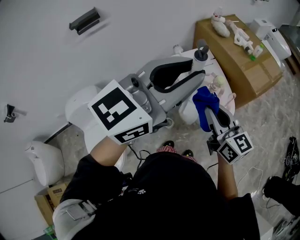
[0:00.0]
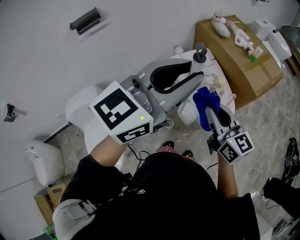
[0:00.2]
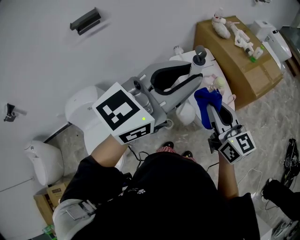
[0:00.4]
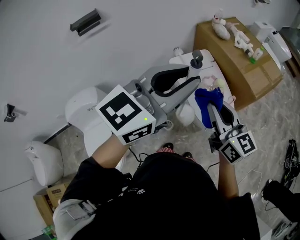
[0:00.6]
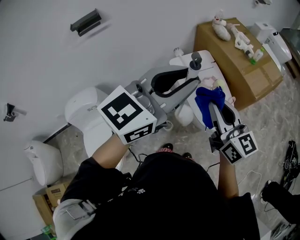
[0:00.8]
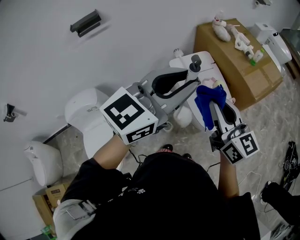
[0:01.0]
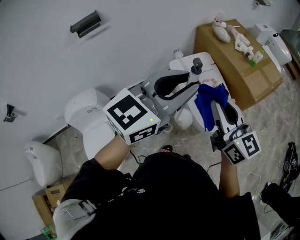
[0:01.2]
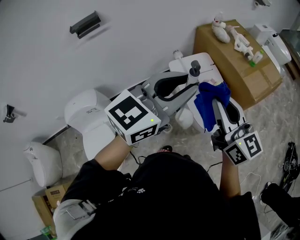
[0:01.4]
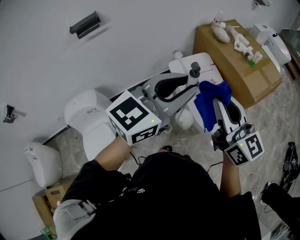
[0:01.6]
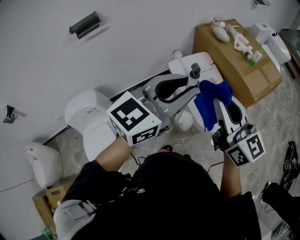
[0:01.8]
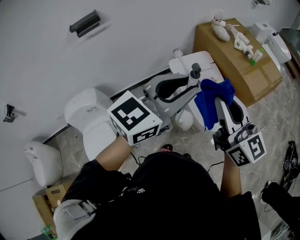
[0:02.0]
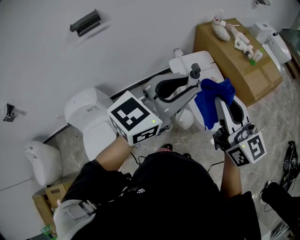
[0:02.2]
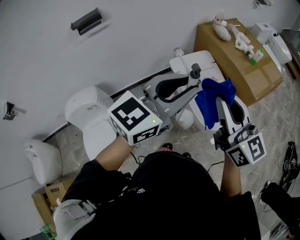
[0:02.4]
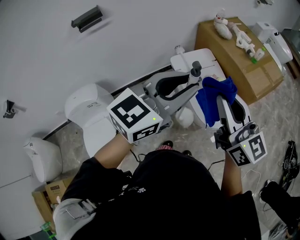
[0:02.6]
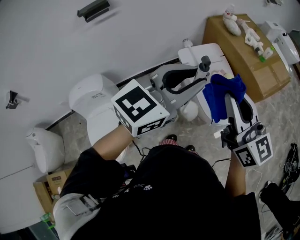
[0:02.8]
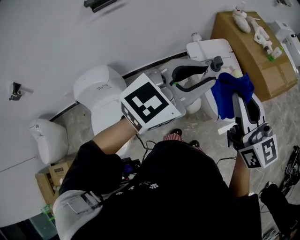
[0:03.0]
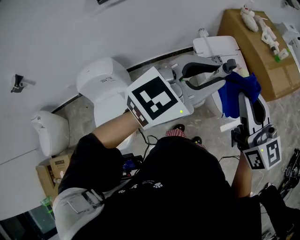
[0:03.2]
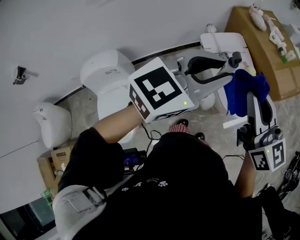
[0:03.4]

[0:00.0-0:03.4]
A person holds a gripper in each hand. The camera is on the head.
0:00.0 to 0:01.6: The left gripper travels downward by approximately 5 cm, while the right gripper is displaced upward by about 10 cm.
0:01.6 to 0:03.4: The grippers make only small movements.

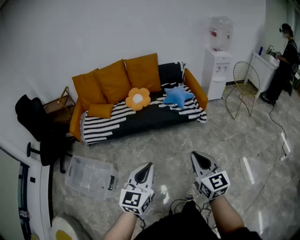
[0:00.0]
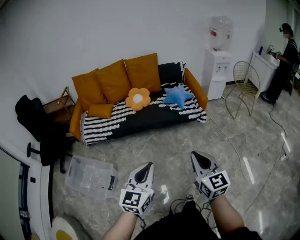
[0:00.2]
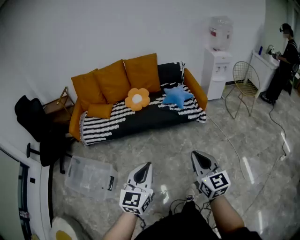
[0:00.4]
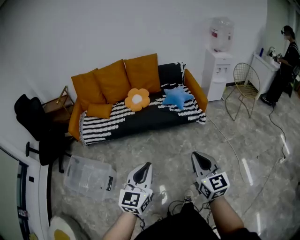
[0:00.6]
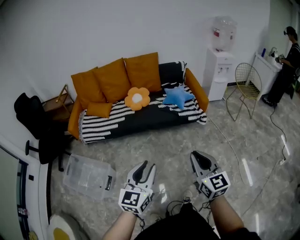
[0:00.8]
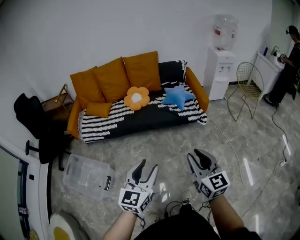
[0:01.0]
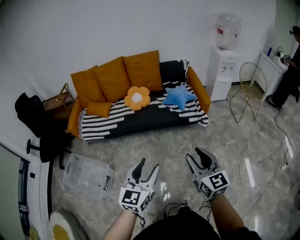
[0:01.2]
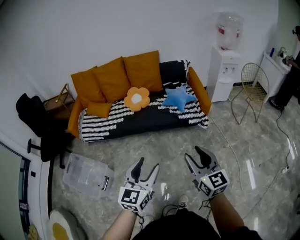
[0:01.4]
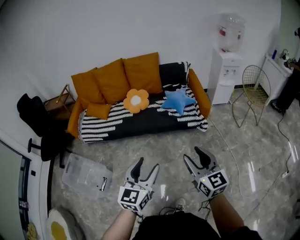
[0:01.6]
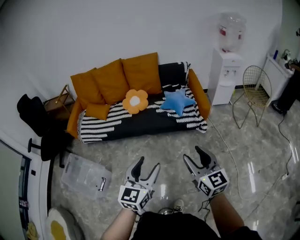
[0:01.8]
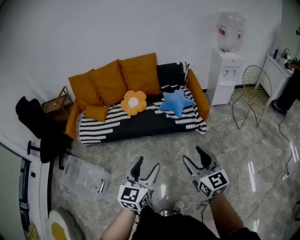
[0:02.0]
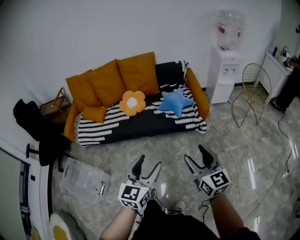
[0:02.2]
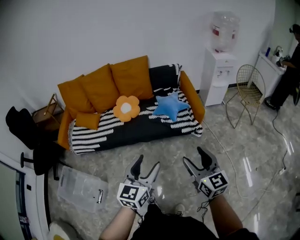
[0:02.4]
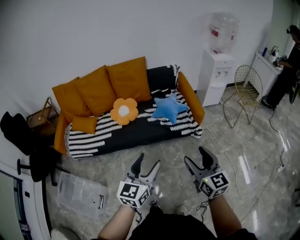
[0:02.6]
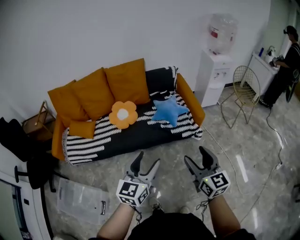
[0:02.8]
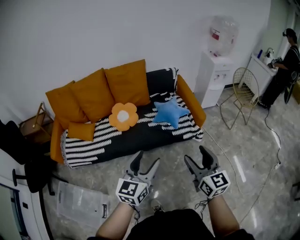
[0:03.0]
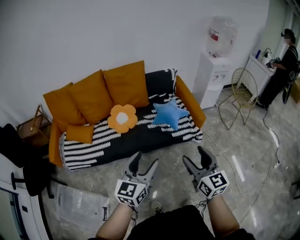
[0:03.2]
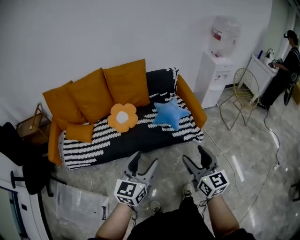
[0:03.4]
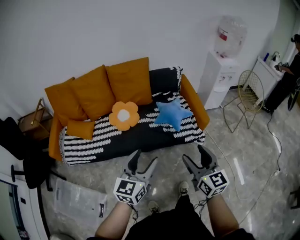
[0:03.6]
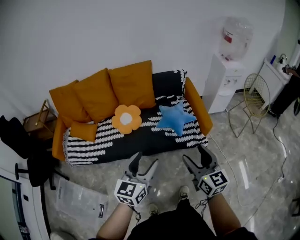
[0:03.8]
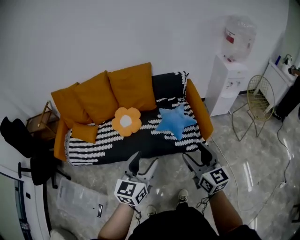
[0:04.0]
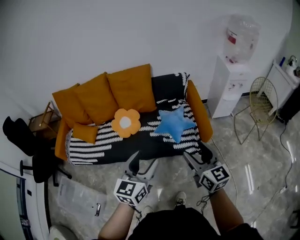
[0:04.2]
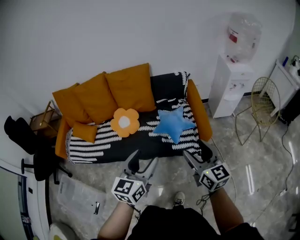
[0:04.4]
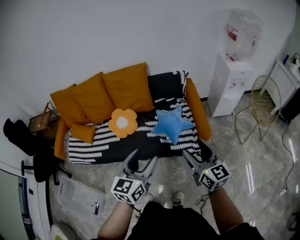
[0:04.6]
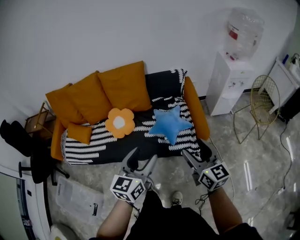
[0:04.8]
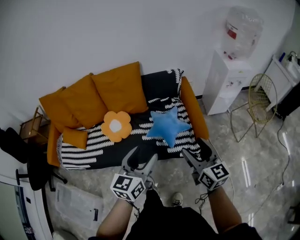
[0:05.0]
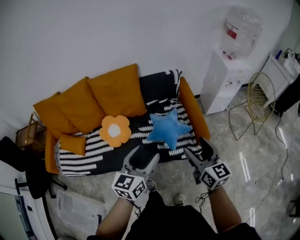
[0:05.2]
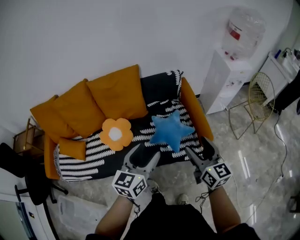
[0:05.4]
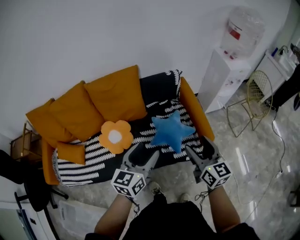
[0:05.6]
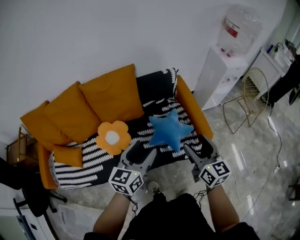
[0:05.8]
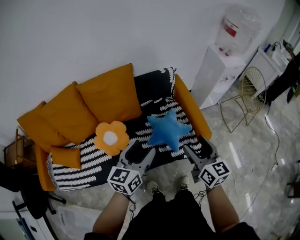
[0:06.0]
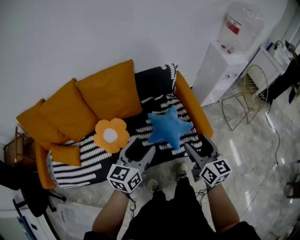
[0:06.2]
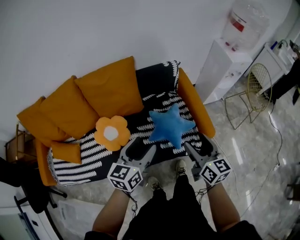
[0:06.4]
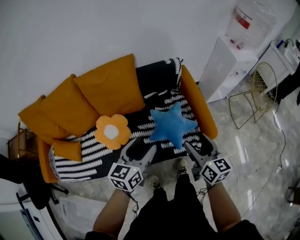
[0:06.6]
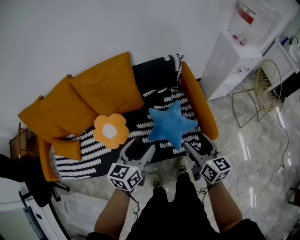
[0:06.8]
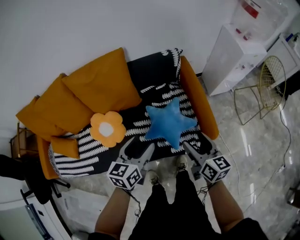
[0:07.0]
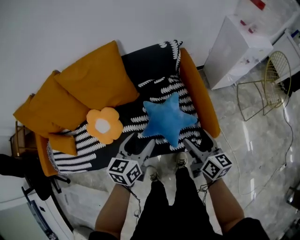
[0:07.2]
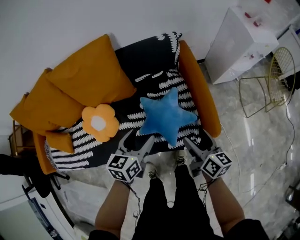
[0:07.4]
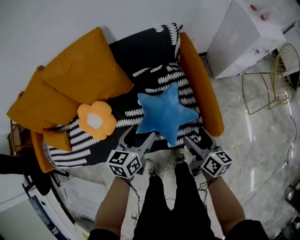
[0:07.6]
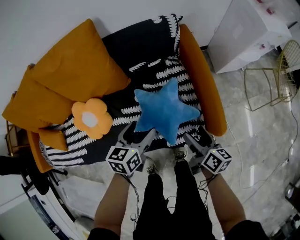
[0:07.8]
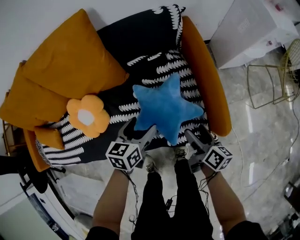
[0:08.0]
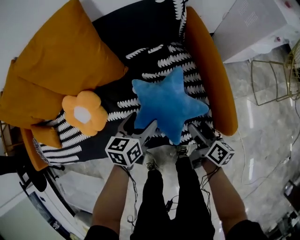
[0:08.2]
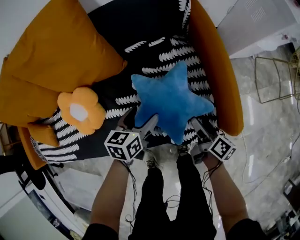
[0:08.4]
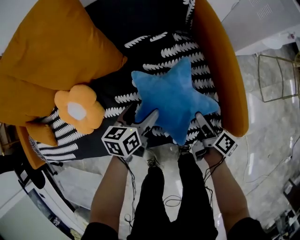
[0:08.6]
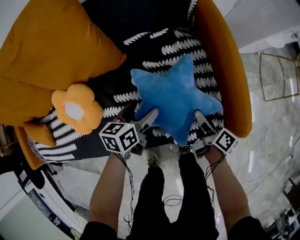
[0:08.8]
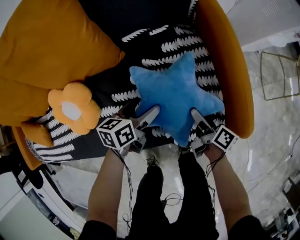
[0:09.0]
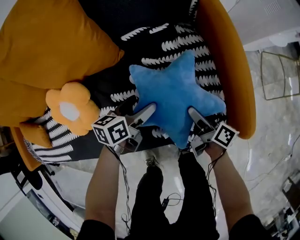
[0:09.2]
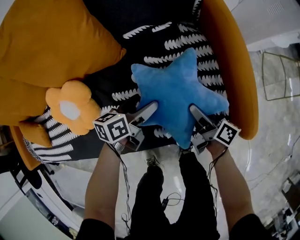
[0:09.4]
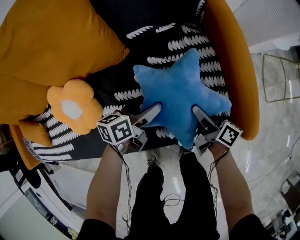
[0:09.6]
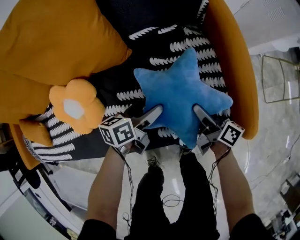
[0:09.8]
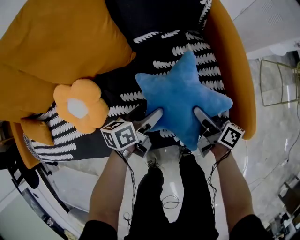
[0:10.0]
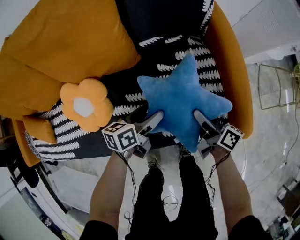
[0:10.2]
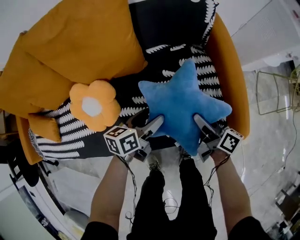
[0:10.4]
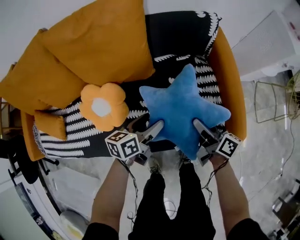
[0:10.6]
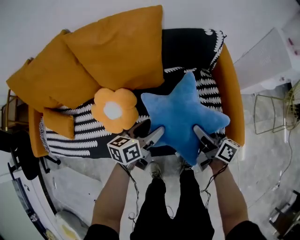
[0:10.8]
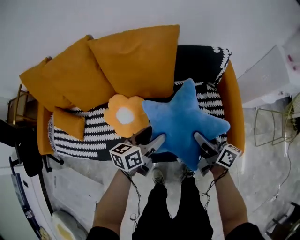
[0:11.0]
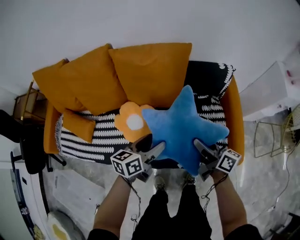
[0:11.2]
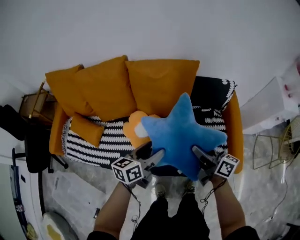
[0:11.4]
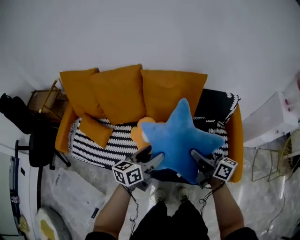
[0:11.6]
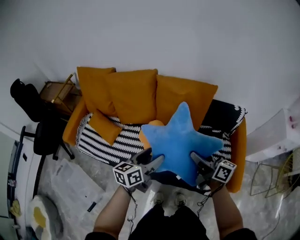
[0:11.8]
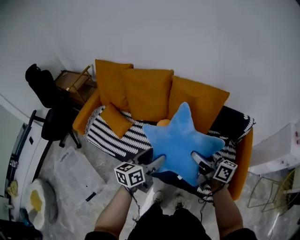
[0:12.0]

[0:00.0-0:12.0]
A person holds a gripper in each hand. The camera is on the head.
0:00.0 to 0:01.6: Both grippers move forward and to the right, some 15 cm. The left gripper opens its fingers. Meanwhile the right gripper opens.
0:01.6 to 0:03.0: Both grippers travel together forward, about 20 cm.
0:03.0 to 0:04.4: Both grippers move forward and to the right, some 20 cm.
0:04.4 to 0:06.0: The grippers both shift forward and to the left by roughly 20 cm.
0:06.0 to 0:07.6: The right gripper shifts some 30 cm downward and forward, and swivels about 30 degrees, while the left gripper shifts roughly 30 cm downward, forward and to the right, and rotates roughly 20 degrees.
0:07.6 to 0:09.0: Both grippers move downward, roughly 25 cm. The right gripper rotates about 30 degrees.
0:09.0 to 0:10.4: The right gripper travels upward and to the left by roughly 15 cm. Meanwhile the left gripper moves upward, some 10 cm.
0:10.4 to 0:12.0: Both grippers travel together upward, roughly 35 cm. The right gripper changes its angle by some 40 degrees; the left gripper swivels approximately 40 degrees.

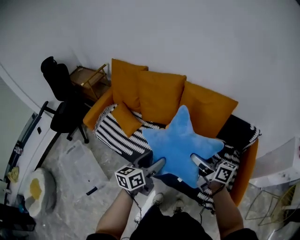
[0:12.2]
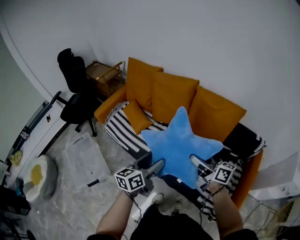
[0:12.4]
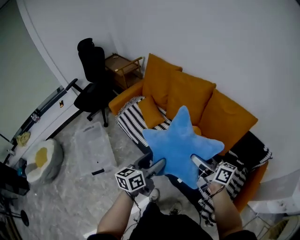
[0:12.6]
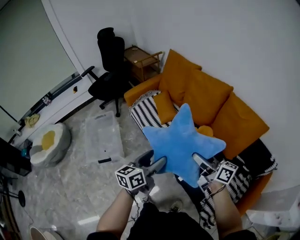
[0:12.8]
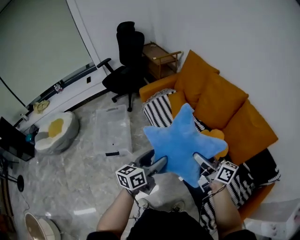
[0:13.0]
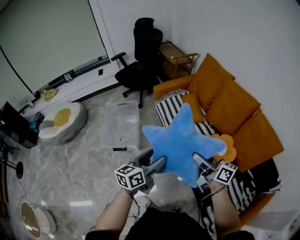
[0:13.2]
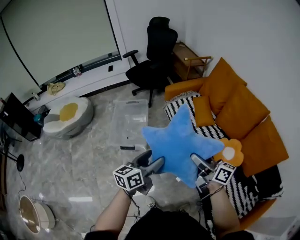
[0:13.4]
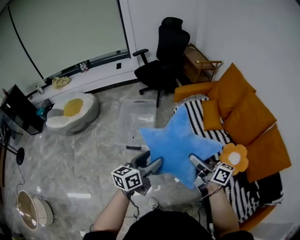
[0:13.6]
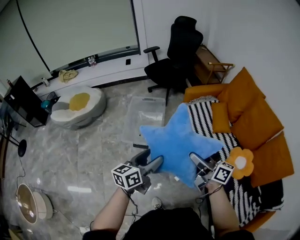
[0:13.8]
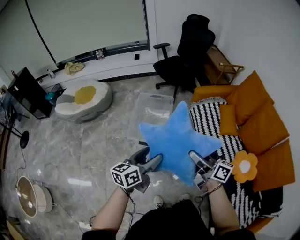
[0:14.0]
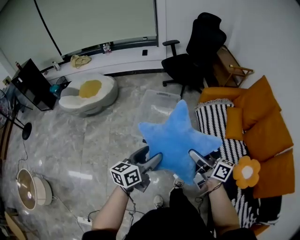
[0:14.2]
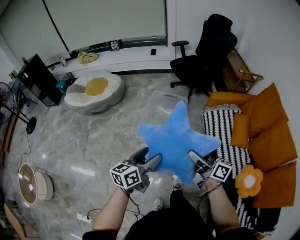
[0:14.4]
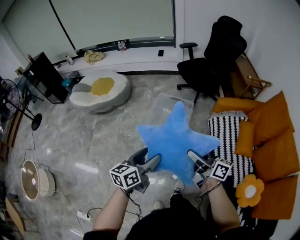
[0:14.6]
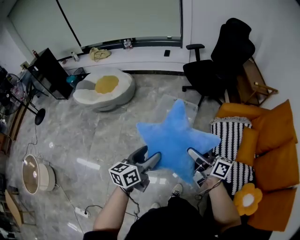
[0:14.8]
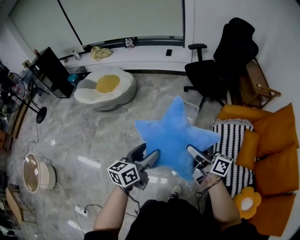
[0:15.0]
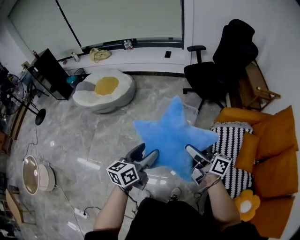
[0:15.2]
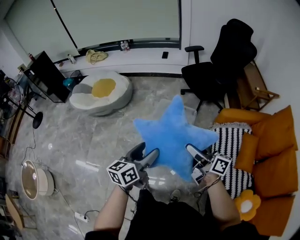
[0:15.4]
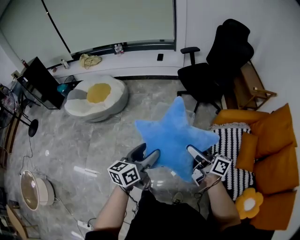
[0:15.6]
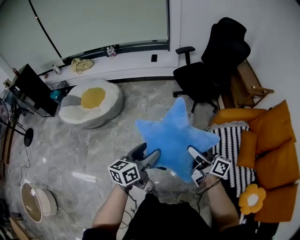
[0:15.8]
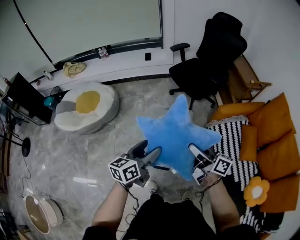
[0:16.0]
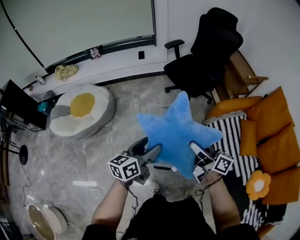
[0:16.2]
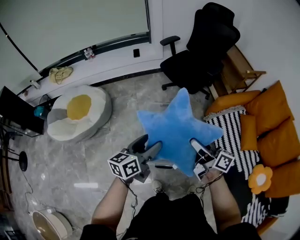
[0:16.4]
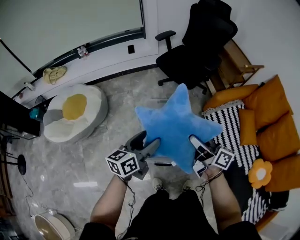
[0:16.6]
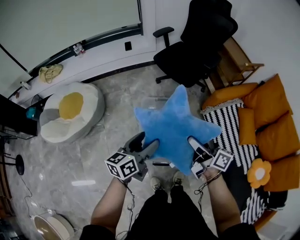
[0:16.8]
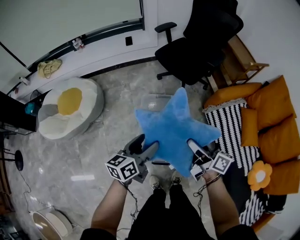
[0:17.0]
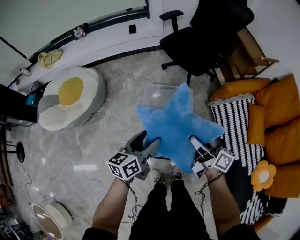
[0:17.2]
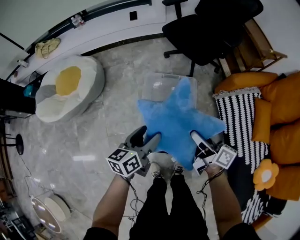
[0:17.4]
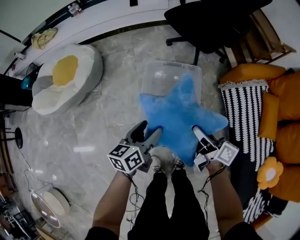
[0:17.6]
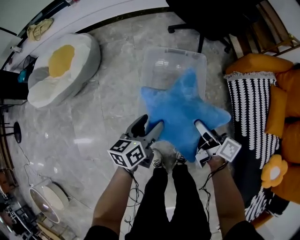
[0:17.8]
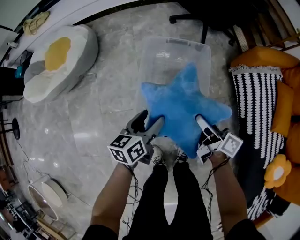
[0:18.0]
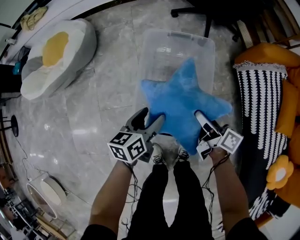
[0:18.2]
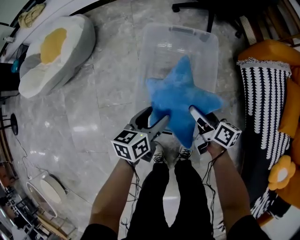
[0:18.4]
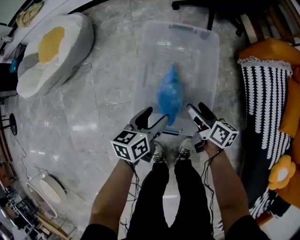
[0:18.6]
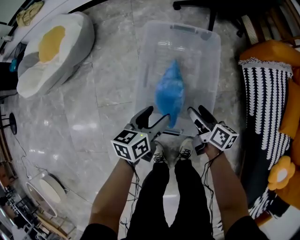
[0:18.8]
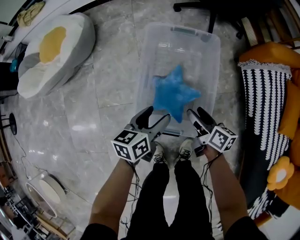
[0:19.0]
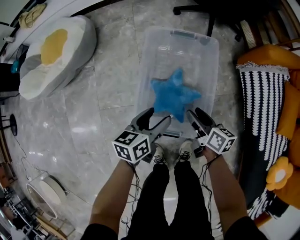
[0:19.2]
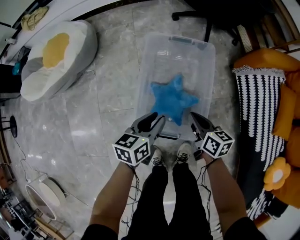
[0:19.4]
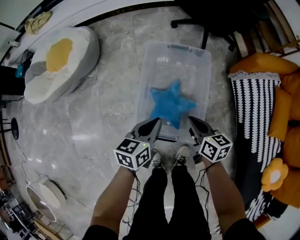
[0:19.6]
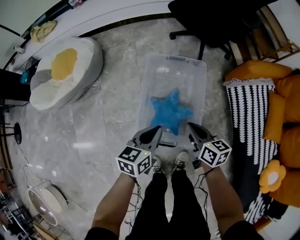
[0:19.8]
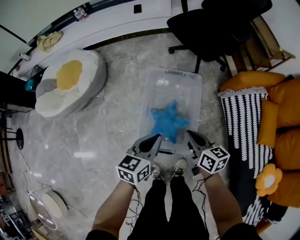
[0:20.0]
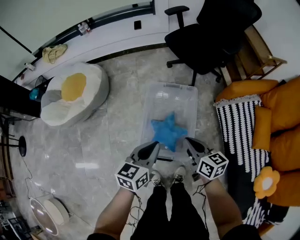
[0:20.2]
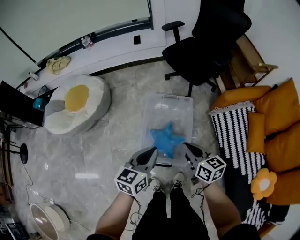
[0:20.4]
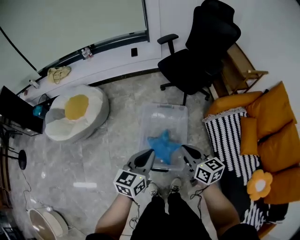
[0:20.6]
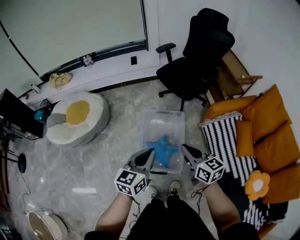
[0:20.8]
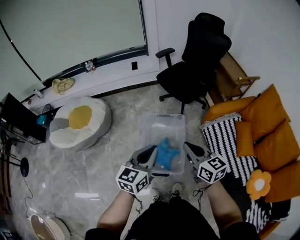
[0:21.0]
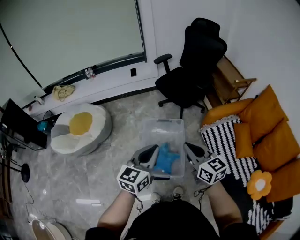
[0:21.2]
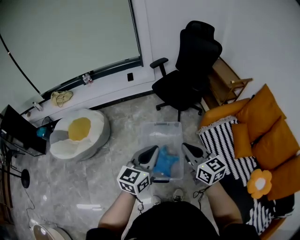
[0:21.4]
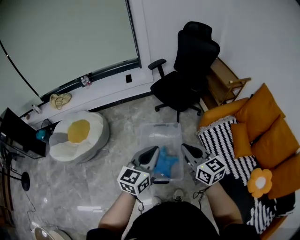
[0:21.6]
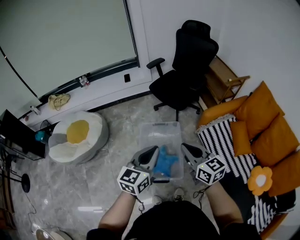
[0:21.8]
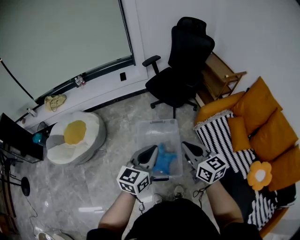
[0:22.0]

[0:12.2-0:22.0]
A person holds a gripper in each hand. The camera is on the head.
0:12.2 to 0:13.6: The two grippers travel together, roughly 50 cm. The left gripper swivels about 40 degrees; the right gripper swivels some 40 degrees.
0:13.6 to 0:15.0: The left gripper shifts by roughly 25 cm, and changes its angle by about 30 degrees. Meanwhile the right gripper moves about 35 cm, and changes its angle by some 30 degrees.
0:15.0 to 0:16.4: The left gripper travels forward by approximately 25 cm, and rotates about 20 degrees. The right gripper goes approximately 20 cm forward and to the left, and rotates about 20 degrees.
0:16.4 to 0:17.8: Both grippers travel together downward, roughly 30 cm.
0:17.8 to 0:19.2: The two grippers go about 15 cm downward. The right gripper swivels about 20 degrees.
0:19.2 to 0:20.6: Both grippers travel together upward, approximately 40 cm. The left gripper turns by approximately 30 degrees, and closes up, while the right gripper swivels some 30 degrees, and closes.
0:20.6 to 0:22.0: Both grippers travel together upward, roughly 10 cm.
